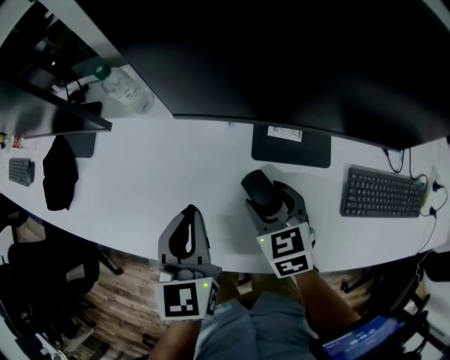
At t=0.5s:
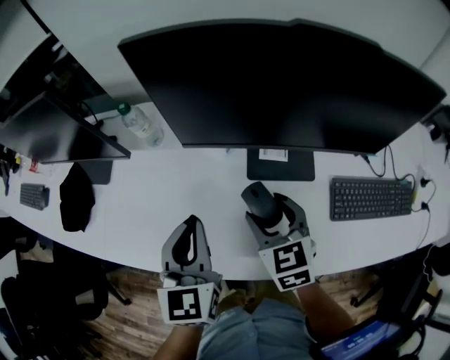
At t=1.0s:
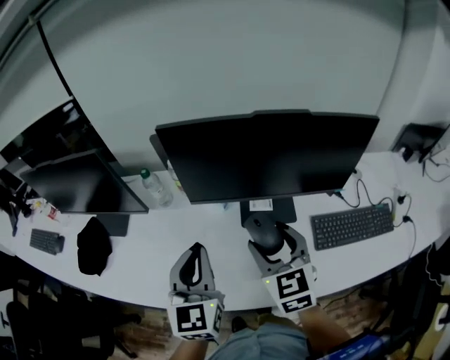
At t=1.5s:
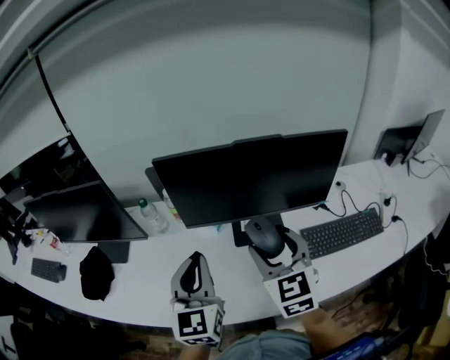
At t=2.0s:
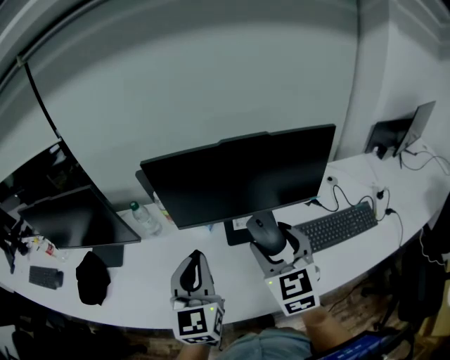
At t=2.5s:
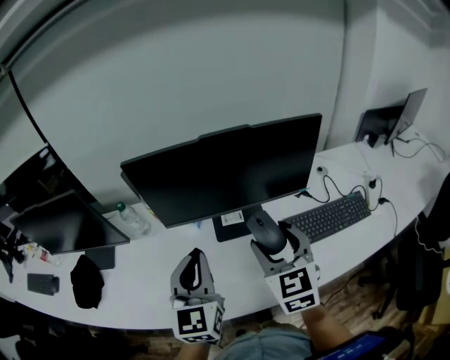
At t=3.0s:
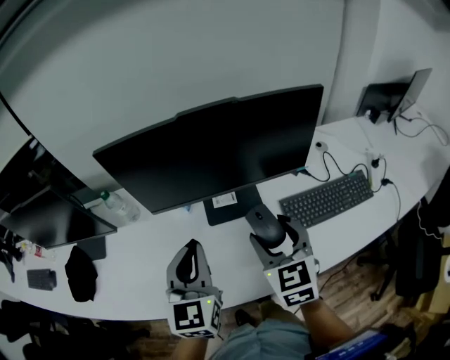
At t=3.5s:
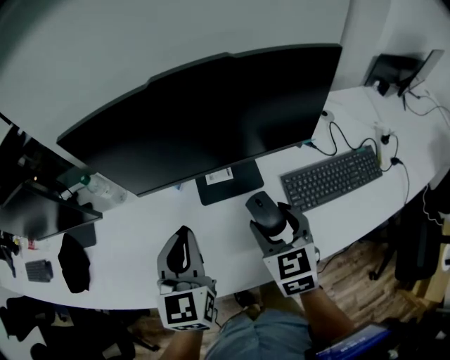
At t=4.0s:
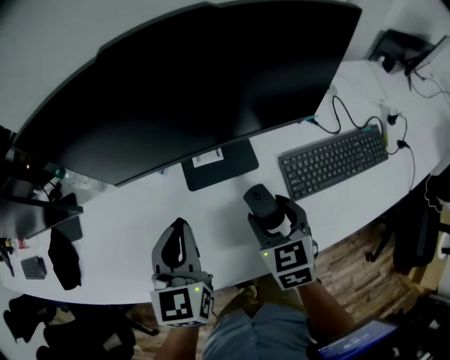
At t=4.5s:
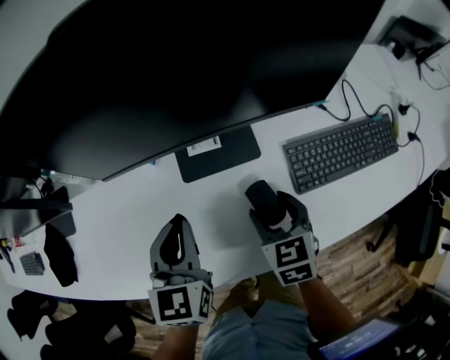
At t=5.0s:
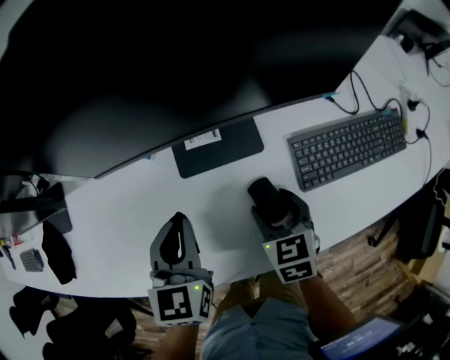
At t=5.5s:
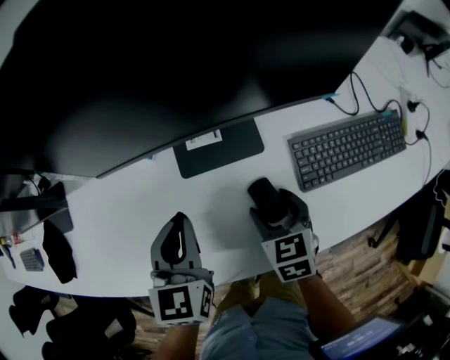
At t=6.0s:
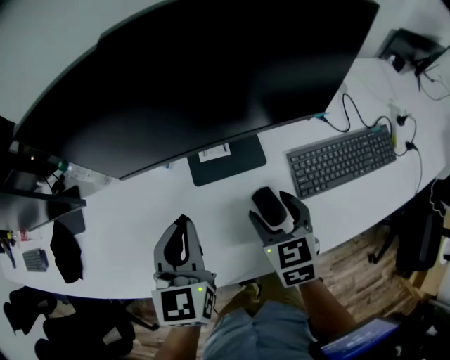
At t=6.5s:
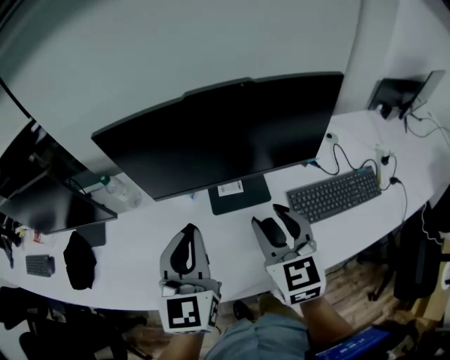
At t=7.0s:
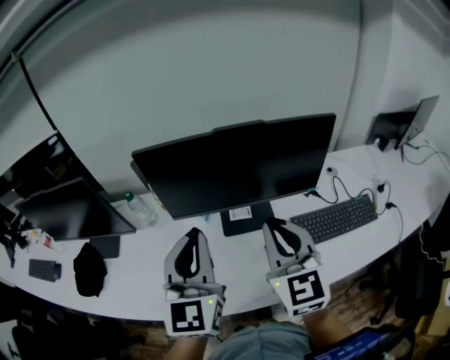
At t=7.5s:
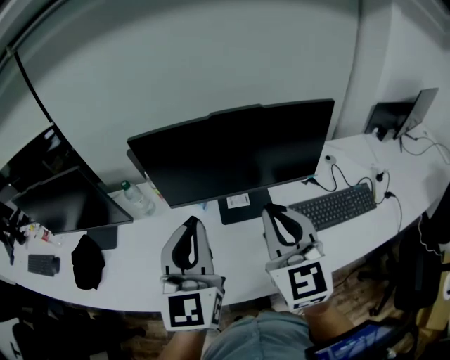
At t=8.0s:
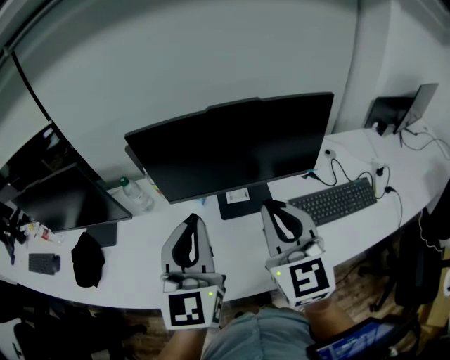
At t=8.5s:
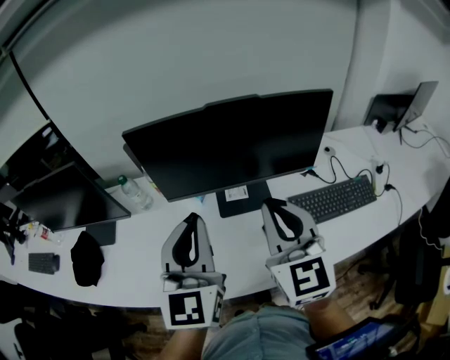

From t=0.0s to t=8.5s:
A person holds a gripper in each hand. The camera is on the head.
From t=0.0s to t=2.0s: The right gripper travels upward by approximately 25 cm, and turns by about 40 degrees. The left gripper heads upward, covering some 15 cm, and rotates approximately 30 degrees.
From t=2.0s to t=4.0s: The right gripper moves downward, approximately 20 cm, and changes its angle by approximately 30 degrees, while the left gripper travels downward and to the right by roughly 15 cm, and changes its angle by some 20 degrees.
From t=4.0s to t=6.5s: The two grippers go approximately 15 cm upward. The right gripper turns by some 20 degrees.
From t=6.5s to t=8.5s: Both grippers travel together upward, approximately 10 cm. The right gripper closes up.

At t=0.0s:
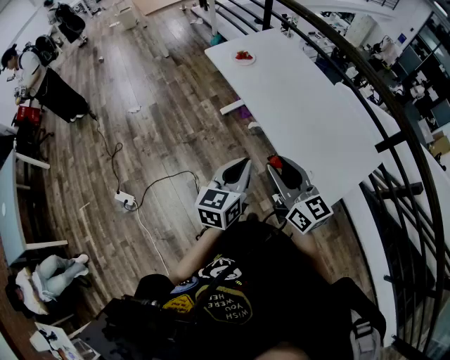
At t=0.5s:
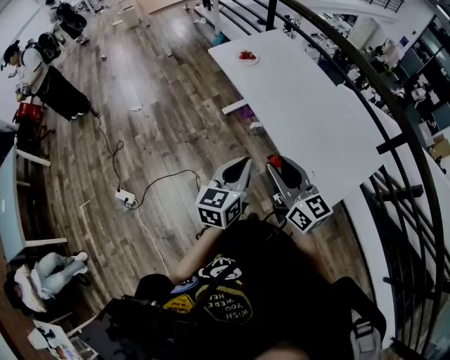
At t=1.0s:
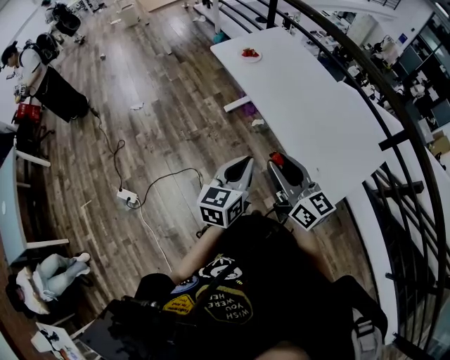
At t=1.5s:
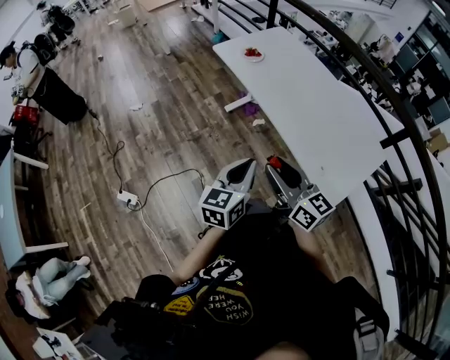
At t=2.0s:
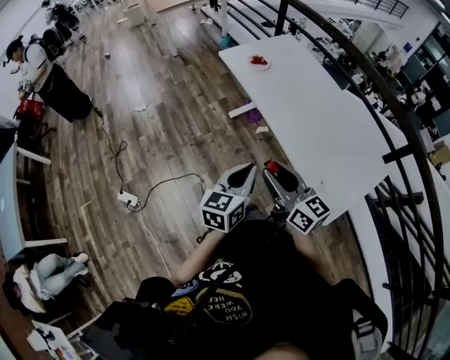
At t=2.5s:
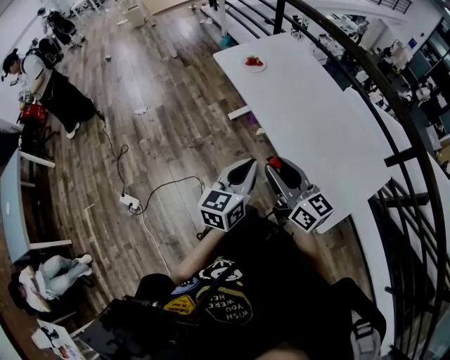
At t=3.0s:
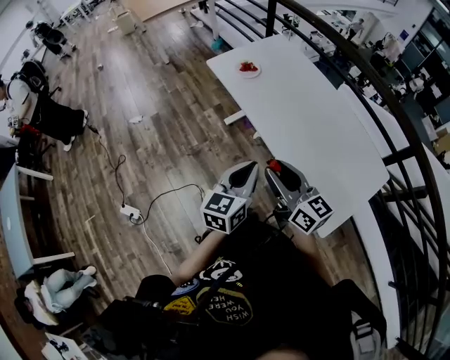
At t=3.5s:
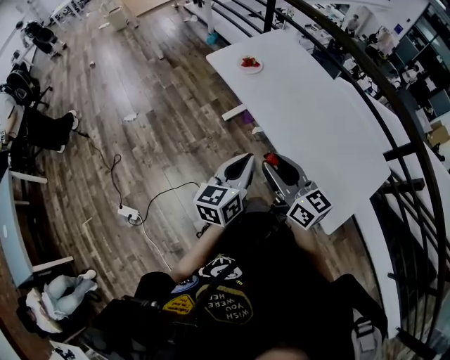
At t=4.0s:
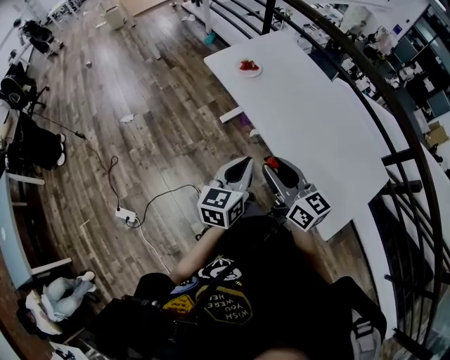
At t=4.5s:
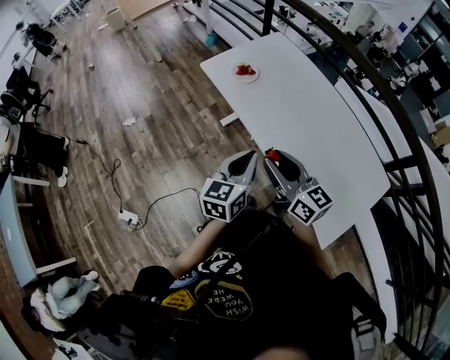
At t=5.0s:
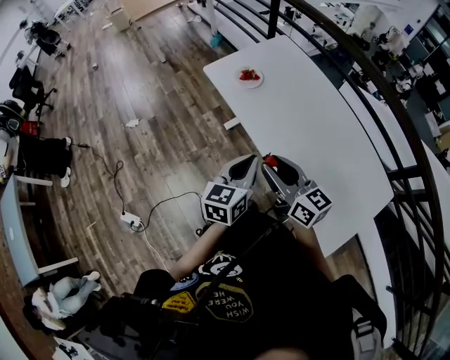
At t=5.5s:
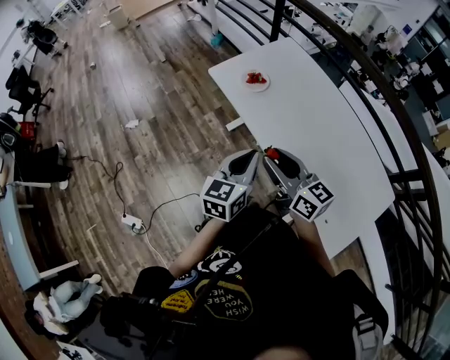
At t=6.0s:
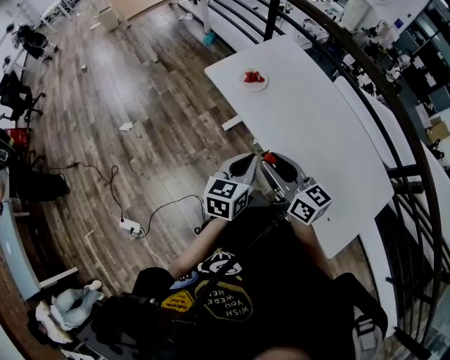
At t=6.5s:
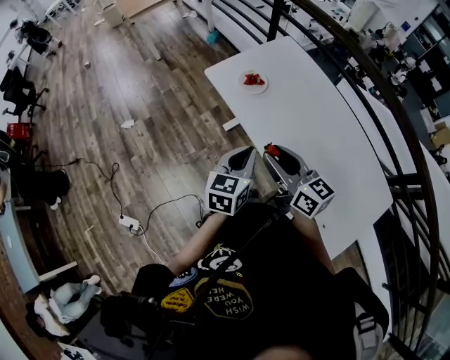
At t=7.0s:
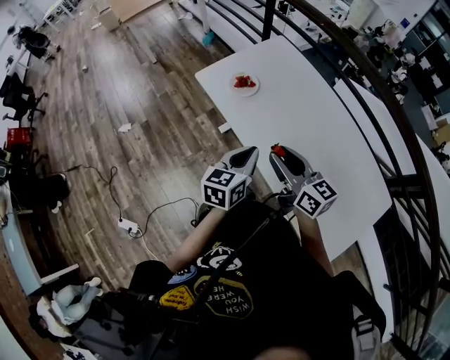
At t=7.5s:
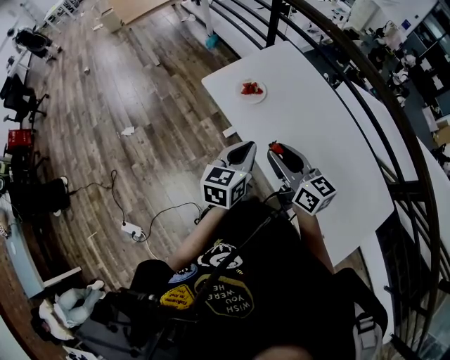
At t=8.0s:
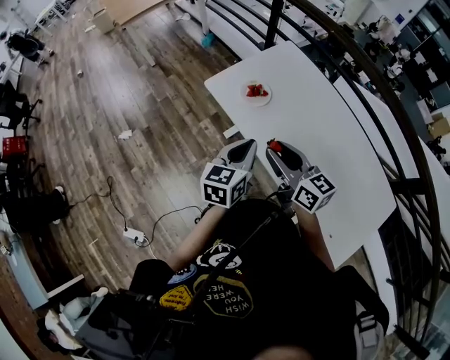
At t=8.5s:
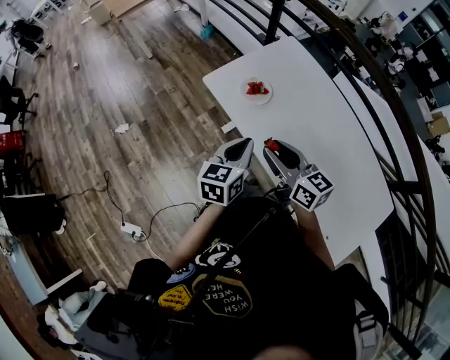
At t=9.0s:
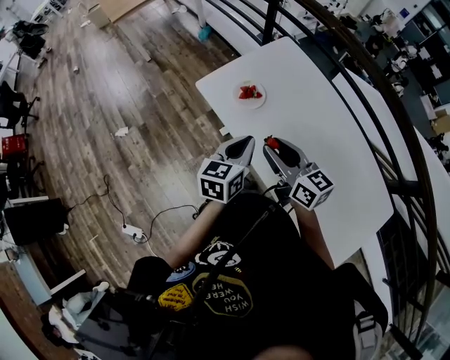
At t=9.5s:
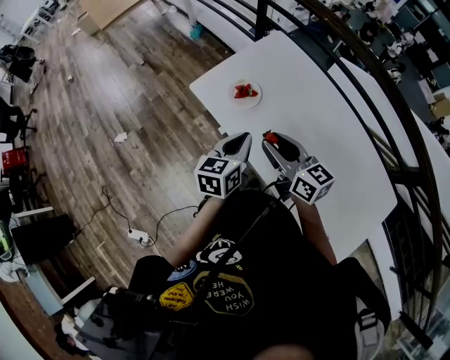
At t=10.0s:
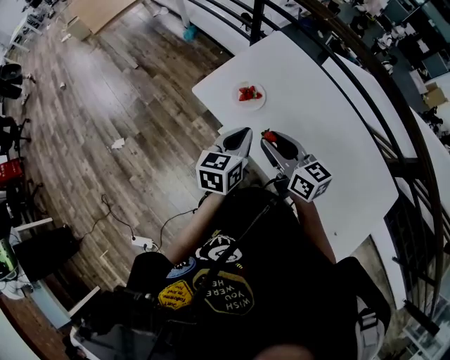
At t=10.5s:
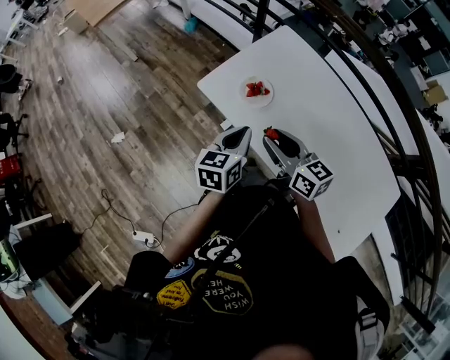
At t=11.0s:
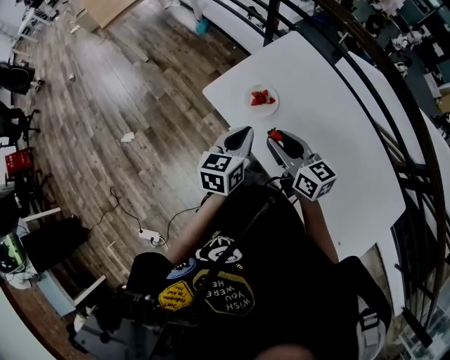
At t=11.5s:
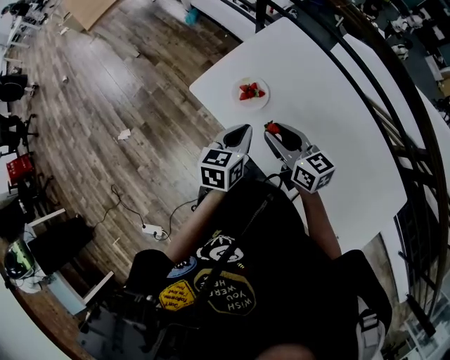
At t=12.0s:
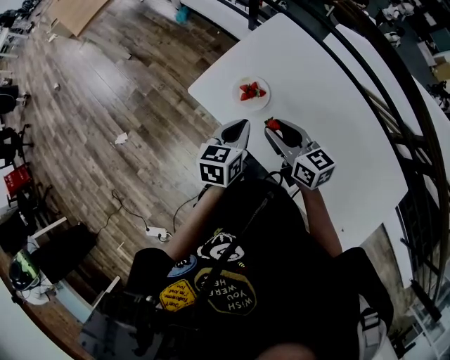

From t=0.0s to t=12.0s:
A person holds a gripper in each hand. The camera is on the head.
From t=0.0s to t=2.0s: The right gripper heads to the left, covering roughly 5 cm. Meanwhile the left gripper changes place by approximately 5 cm.
From t=2.0s to t=4.0s: The two grippers go roughly 15 cm forward.
From t=4.0s to t=6.0s: The grippers both shift forward by approximately 15 cm.
From t=6.0s to t=8.0s: Both grippers move forward, approximately 15 cm.
From t=8.0s to t=10.0s: Both grippers travel together forward, approximately 10 cm.
From t=10.0s to t=12.0s: Both grippers move forward and downward, some 10 cm.

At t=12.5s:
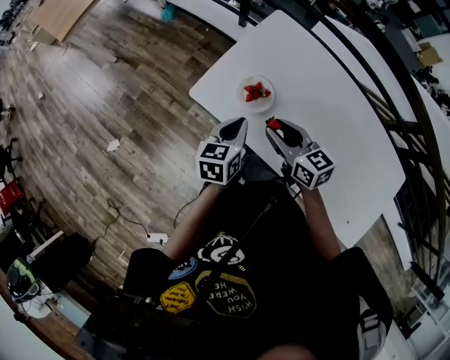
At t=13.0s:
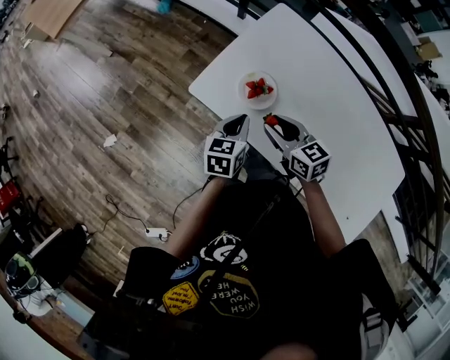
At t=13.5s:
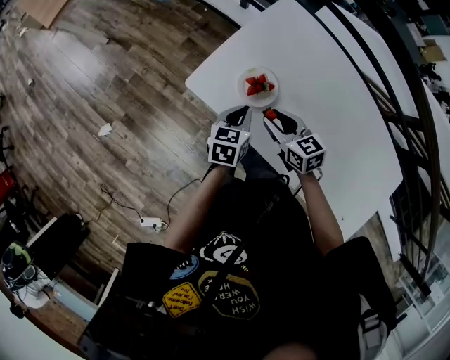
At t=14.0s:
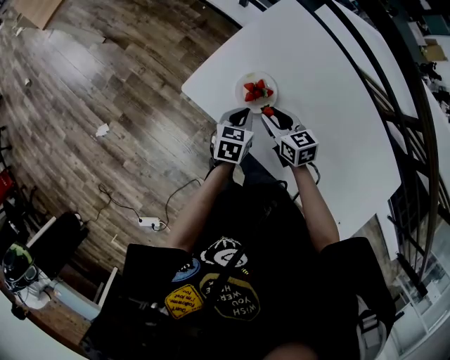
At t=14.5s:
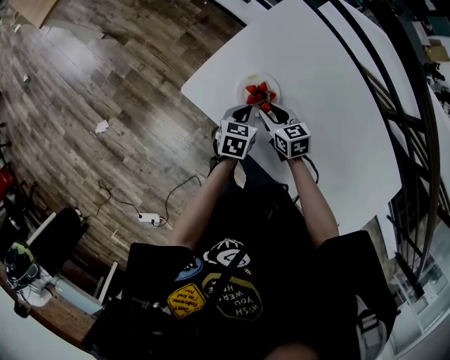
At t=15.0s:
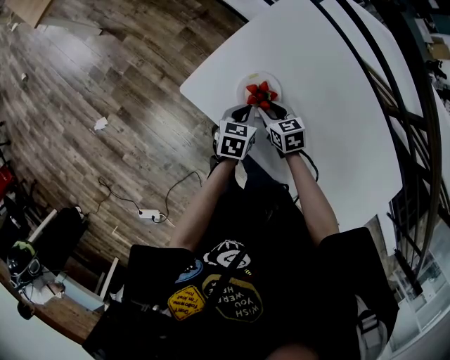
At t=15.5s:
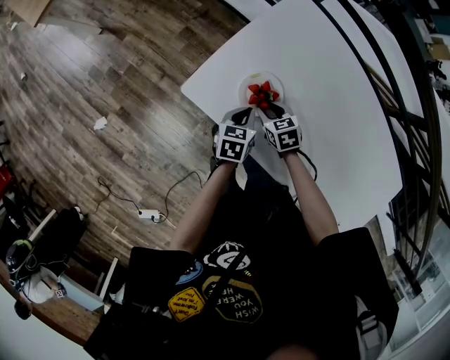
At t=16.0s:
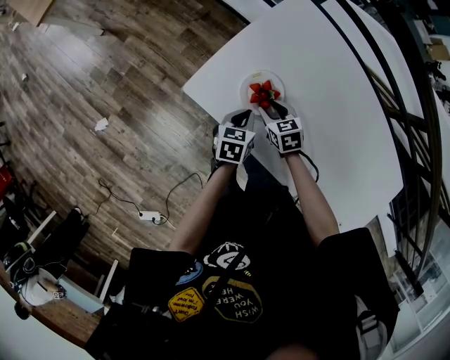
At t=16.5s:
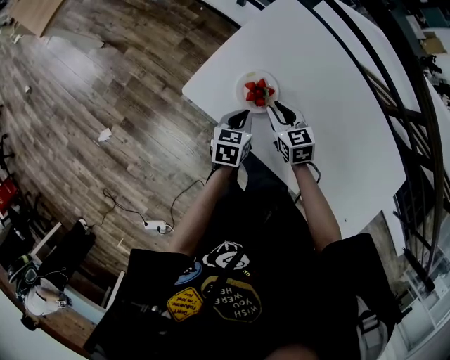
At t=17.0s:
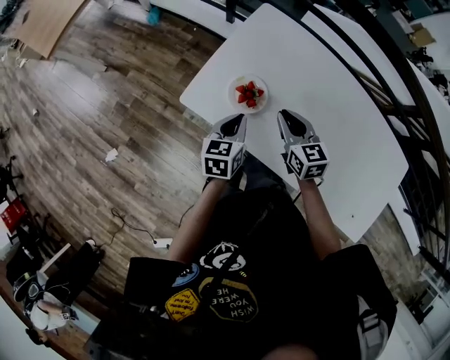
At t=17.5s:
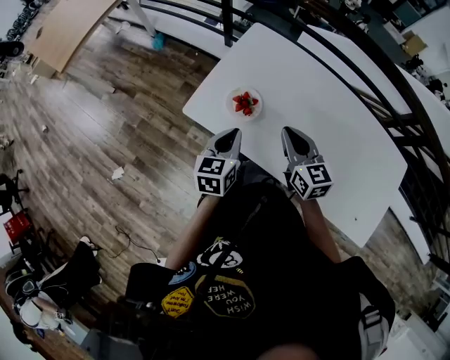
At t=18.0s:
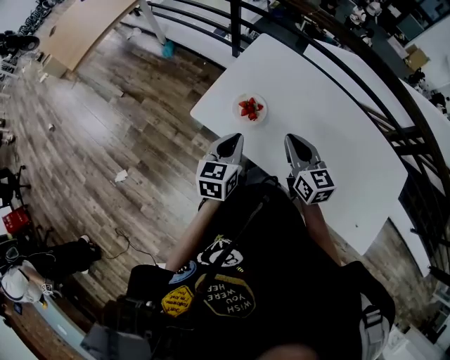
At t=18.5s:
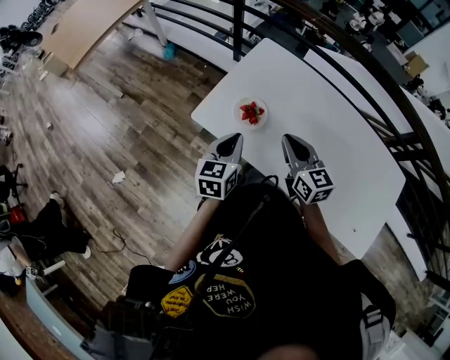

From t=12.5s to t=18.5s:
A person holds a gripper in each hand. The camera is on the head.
From t=12.5s to t=14.5s: Both grippers move downward and forward, roughly 20 cm. The right gripper turns by approximately 20 degrees.
From t=14.5s to t=16.5s: The grippers stay close to where they were, moving slightly.
From t=16.5s to t=18.5s: The two grippers go about 20 cm upward and backward. The right gripper rotates about 30 degrees, and closes its fingers, while the left gripper swivels approximately 20 degrees.
